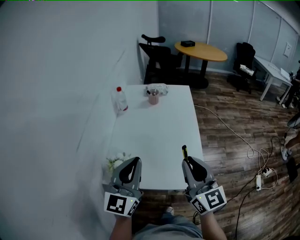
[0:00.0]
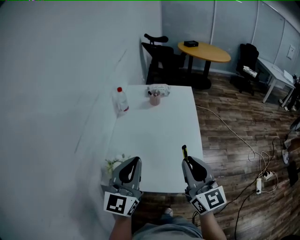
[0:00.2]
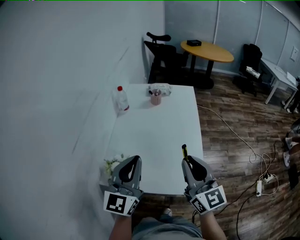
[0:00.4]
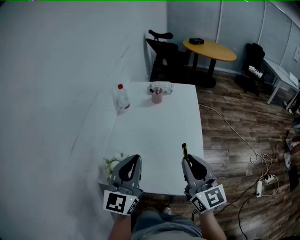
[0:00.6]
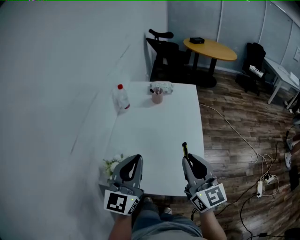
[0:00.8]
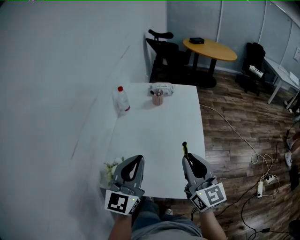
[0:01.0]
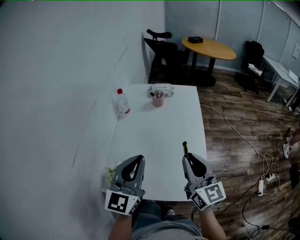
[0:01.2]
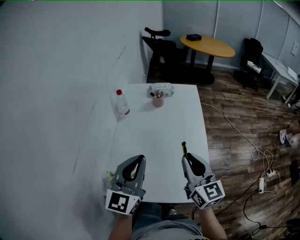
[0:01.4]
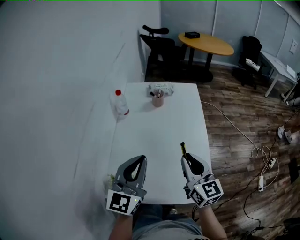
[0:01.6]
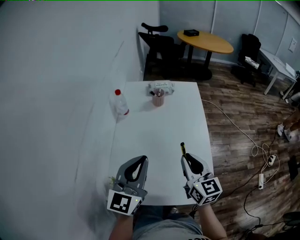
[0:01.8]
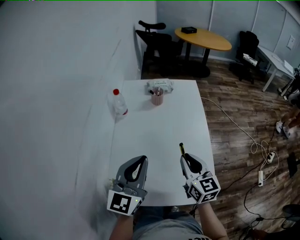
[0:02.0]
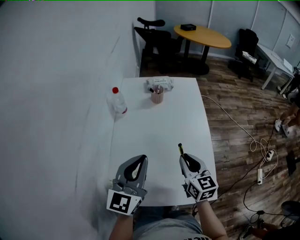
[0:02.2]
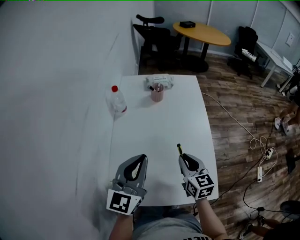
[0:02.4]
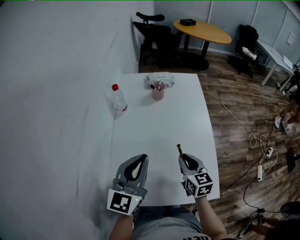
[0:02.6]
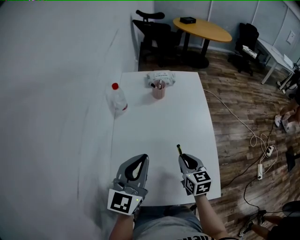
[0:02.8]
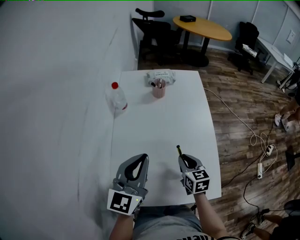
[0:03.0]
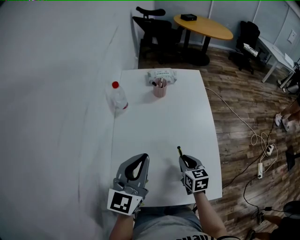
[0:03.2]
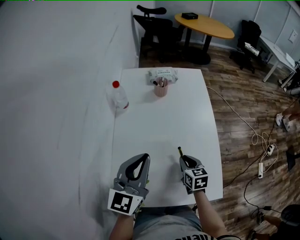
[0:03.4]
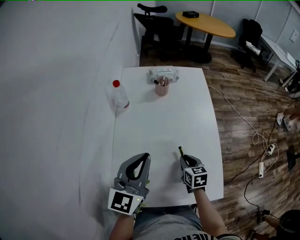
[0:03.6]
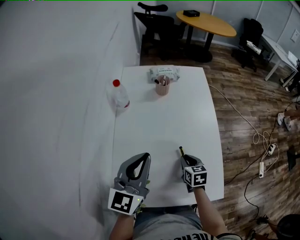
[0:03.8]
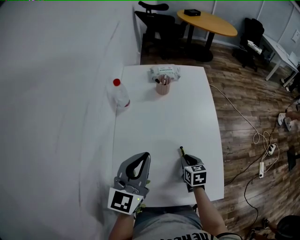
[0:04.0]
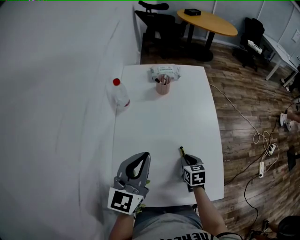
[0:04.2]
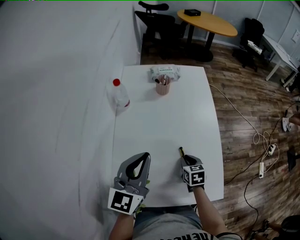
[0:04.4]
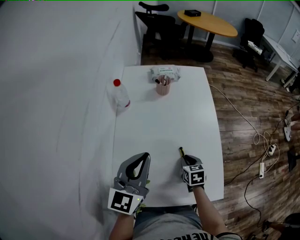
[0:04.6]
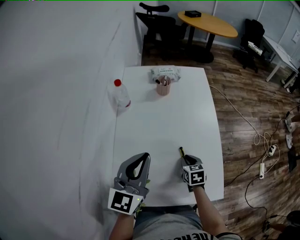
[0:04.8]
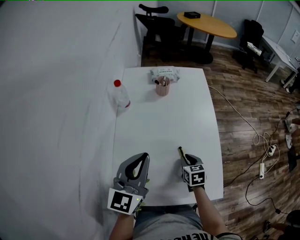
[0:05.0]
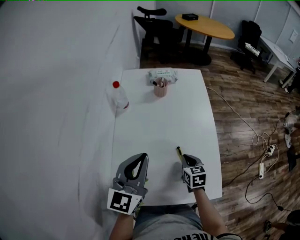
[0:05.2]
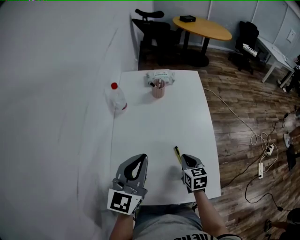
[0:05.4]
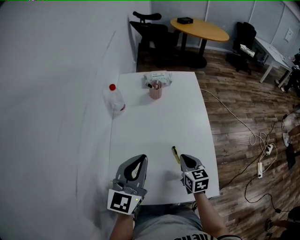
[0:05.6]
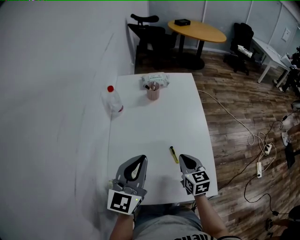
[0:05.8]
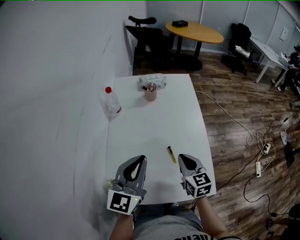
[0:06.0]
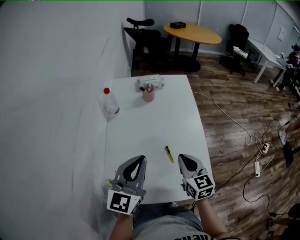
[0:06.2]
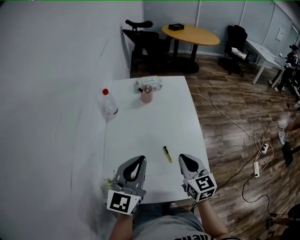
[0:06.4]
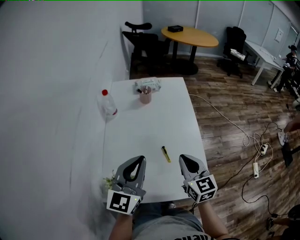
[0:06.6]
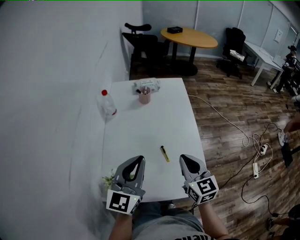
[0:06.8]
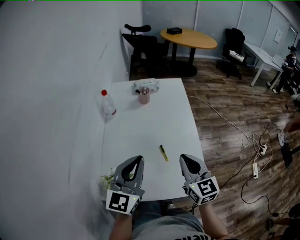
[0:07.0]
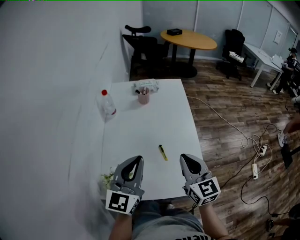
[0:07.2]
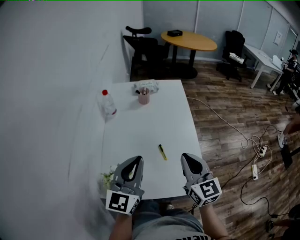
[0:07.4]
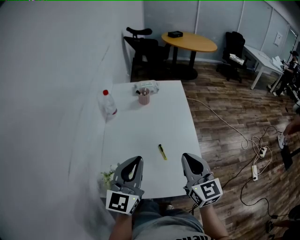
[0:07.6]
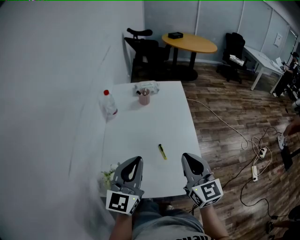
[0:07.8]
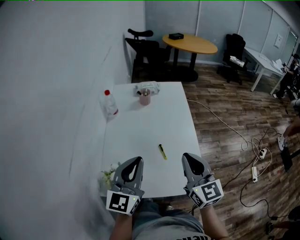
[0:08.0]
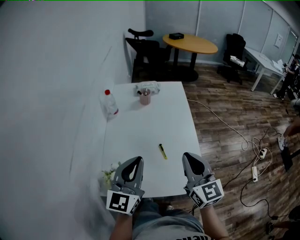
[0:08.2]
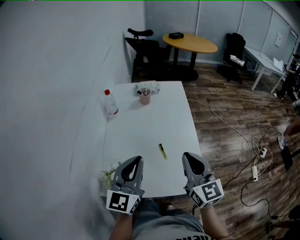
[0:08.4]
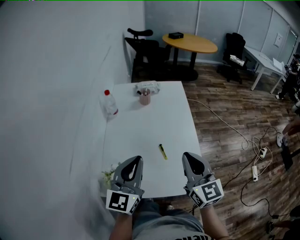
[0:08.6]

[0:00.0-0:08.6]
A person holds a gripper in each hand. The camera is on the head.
0:00.0 to 0:01.4: The two grippers go about 10 cm forward.
0:01.4 to 0:02.8: The left gripper goes roughly 5 cm forward; the right gripper moves downward and forward, approximately 20 cm, and rotates some 30 degrees.
0:02.8 to 0:04.4: The right gripper goes approximately 10 cm downward, and turns by approximately 20 degrees.
0:04.4 to 0:05.8: The right gripper shifts some 10 cm upward, and changes its angle by approximately 20 degrees.
0:05.8 to 0:07.2: The right gripper travels upward and backward by about 15 cm, and turns by about 20 degrees; the left gripper changes place by about 5 cm.
0:07.2 to 0:08.6: The grippers make only small movements.

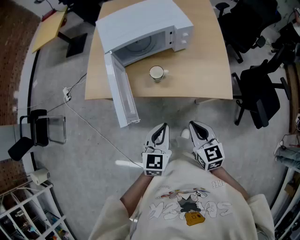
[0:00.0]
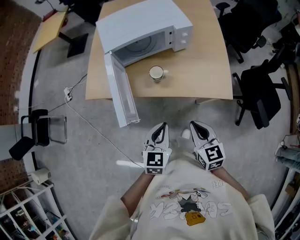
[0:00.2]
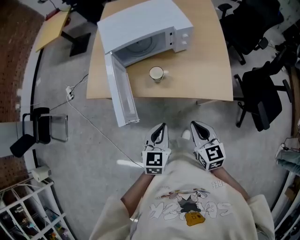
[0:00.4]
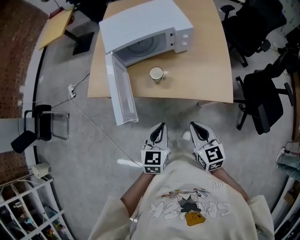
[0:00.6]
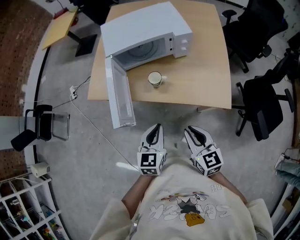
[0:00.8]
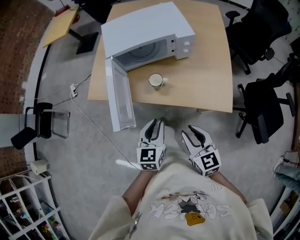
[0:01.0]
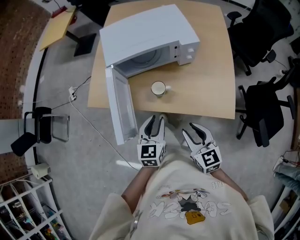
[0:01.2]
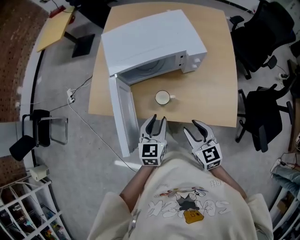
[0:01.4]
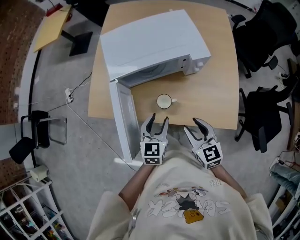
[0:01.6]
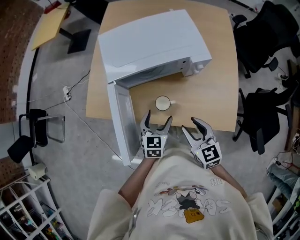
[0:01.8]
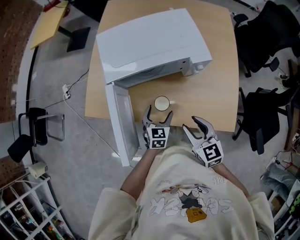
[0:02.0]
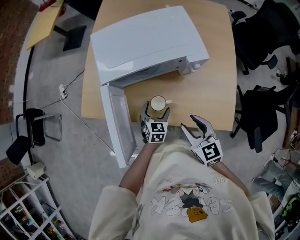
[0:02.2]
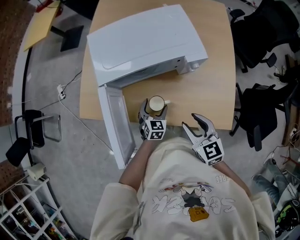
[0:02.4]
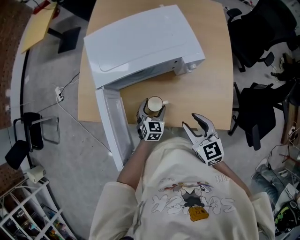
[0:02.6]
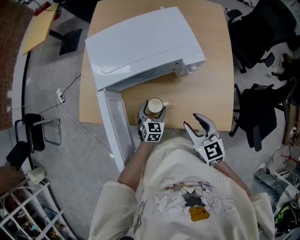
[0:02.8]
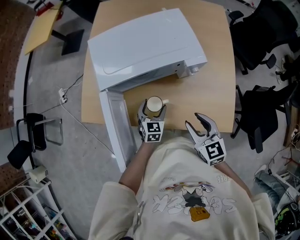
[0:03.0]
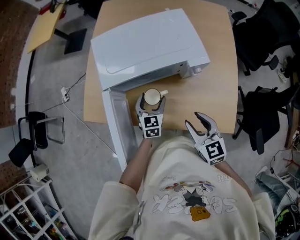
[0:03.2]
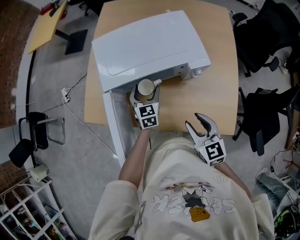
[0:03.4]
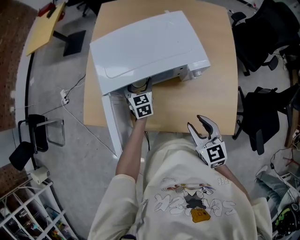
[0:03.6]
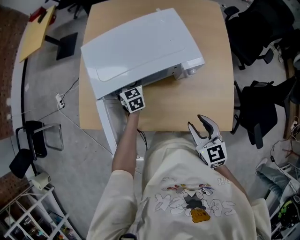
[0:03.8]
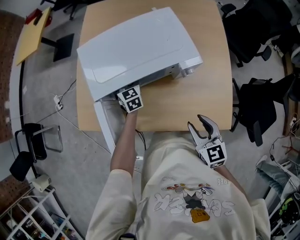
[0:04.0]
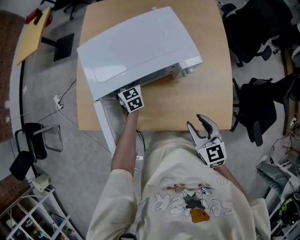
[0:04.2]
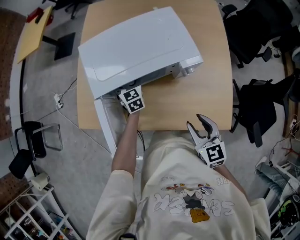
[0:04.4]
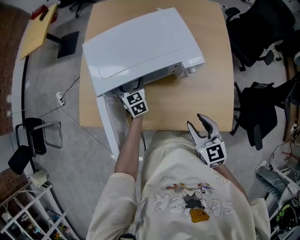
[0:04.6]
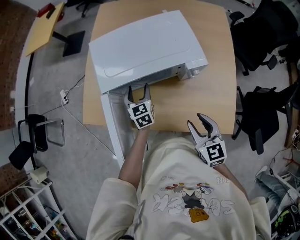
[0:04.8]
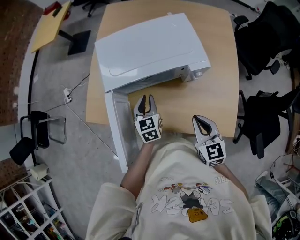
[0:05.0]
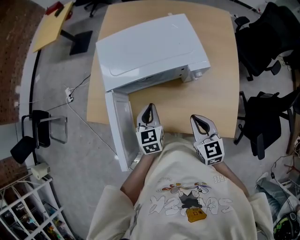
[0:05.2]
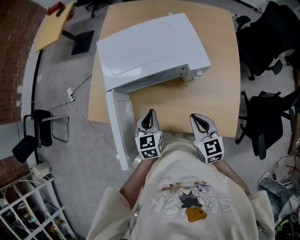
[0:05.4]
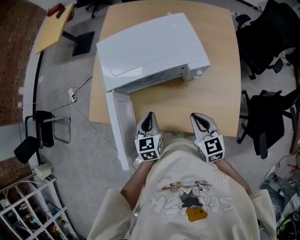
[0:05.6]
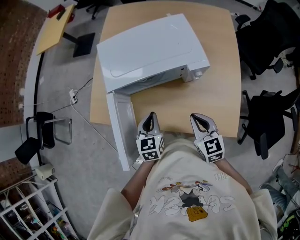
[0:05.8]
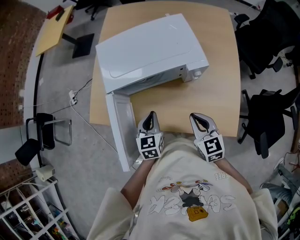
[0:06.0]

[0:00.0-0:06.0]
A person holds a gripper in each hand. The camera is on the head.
0:00.0 to 0:01.6: The two grippers go some 20 cm forward. The left gripper opens up. The right gripper opens up.
0:01.6 to 0:03.0: The left gripper moves downward and forward, about 15 cm, and opens its fingers. The right gripper heads forward, covering approximately 5 cm.
0:03.0 to 0:04.4: The left gripper shifts about 20 cm forward, and rotates about 20 degrees.
0:04.4 to 0:06.0: The right gripper closes its fingers, while the left gripper shifts approximately 20 cm backward, and closes.

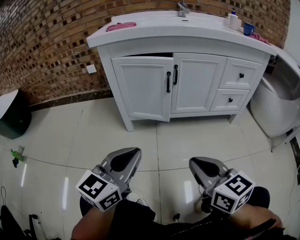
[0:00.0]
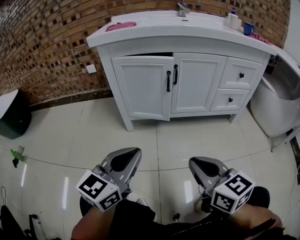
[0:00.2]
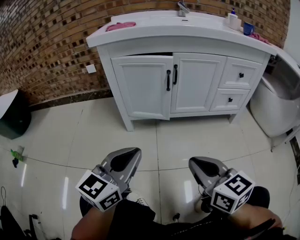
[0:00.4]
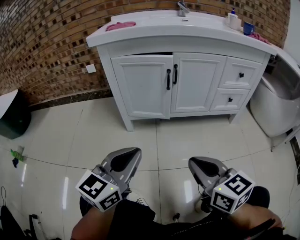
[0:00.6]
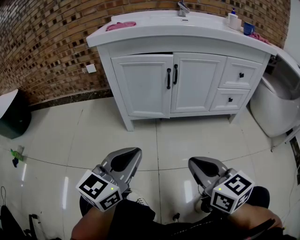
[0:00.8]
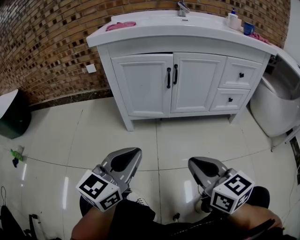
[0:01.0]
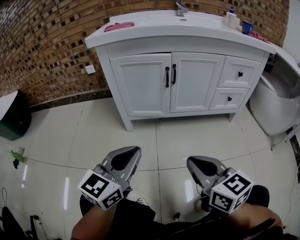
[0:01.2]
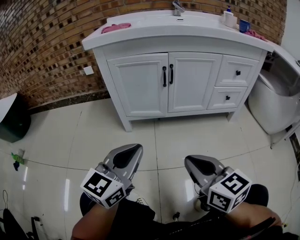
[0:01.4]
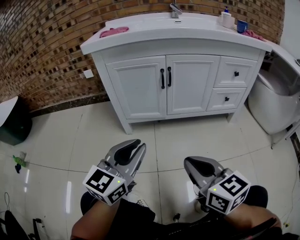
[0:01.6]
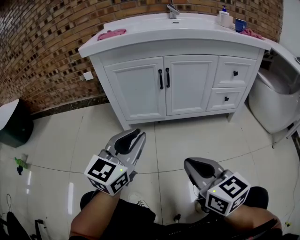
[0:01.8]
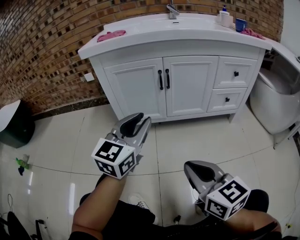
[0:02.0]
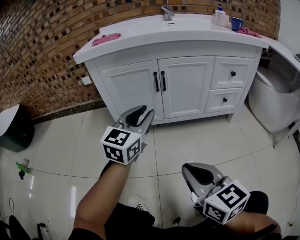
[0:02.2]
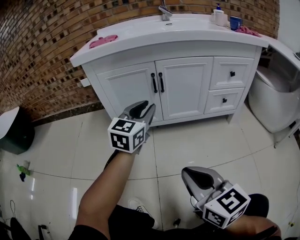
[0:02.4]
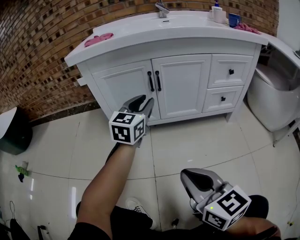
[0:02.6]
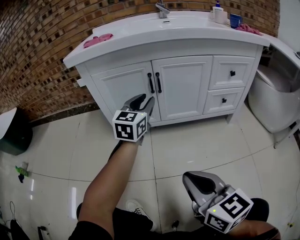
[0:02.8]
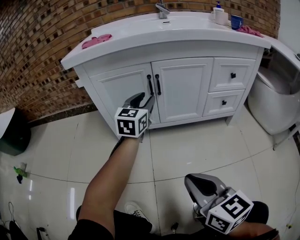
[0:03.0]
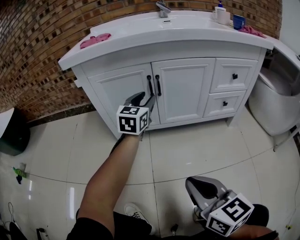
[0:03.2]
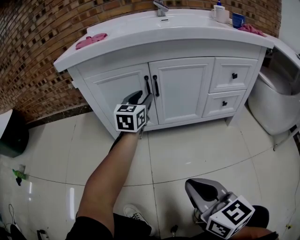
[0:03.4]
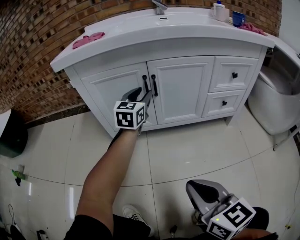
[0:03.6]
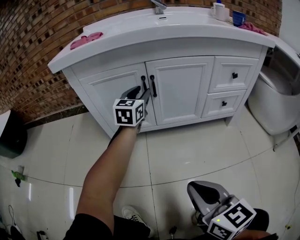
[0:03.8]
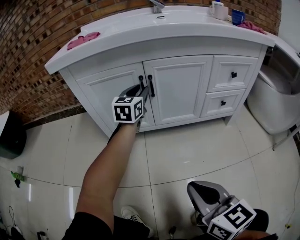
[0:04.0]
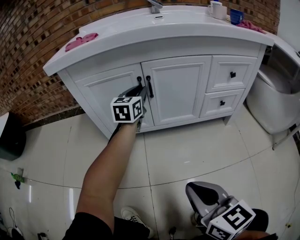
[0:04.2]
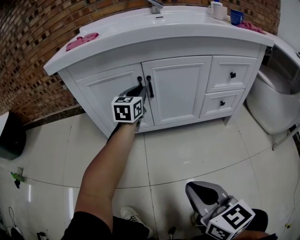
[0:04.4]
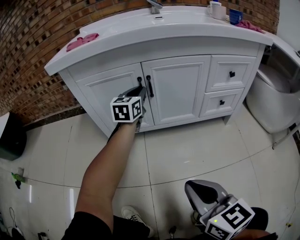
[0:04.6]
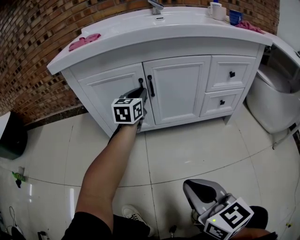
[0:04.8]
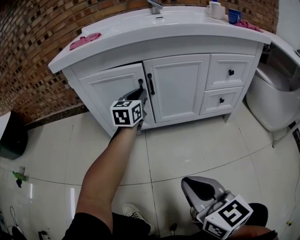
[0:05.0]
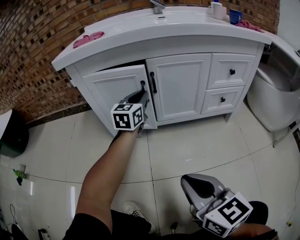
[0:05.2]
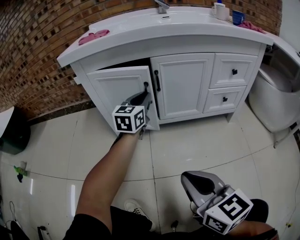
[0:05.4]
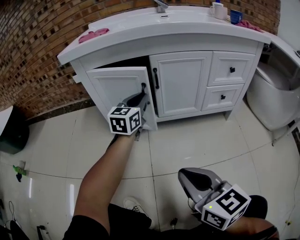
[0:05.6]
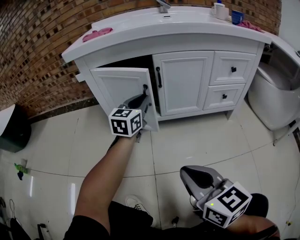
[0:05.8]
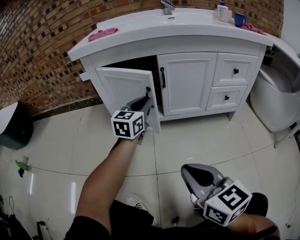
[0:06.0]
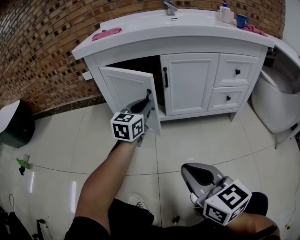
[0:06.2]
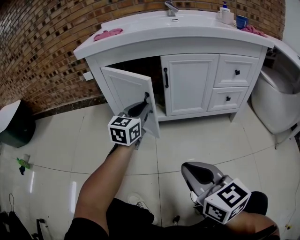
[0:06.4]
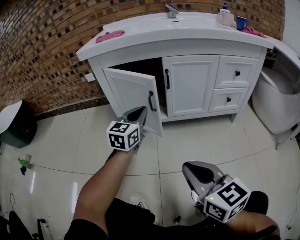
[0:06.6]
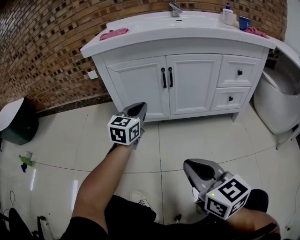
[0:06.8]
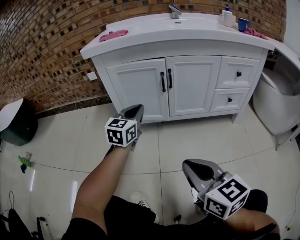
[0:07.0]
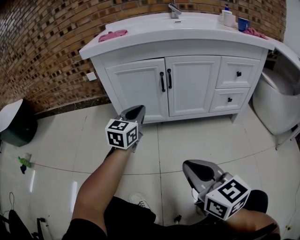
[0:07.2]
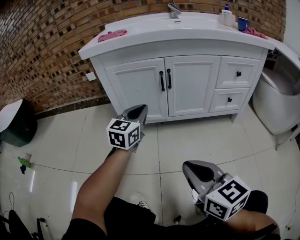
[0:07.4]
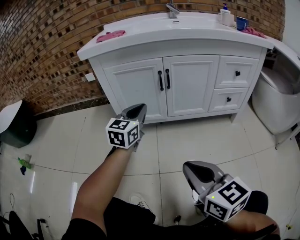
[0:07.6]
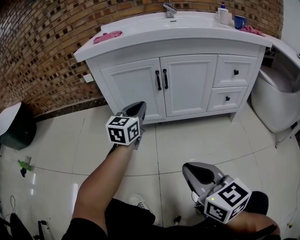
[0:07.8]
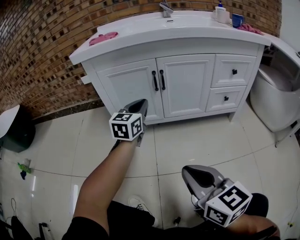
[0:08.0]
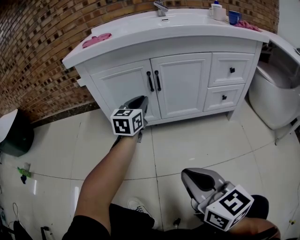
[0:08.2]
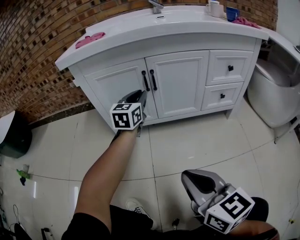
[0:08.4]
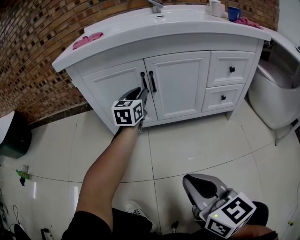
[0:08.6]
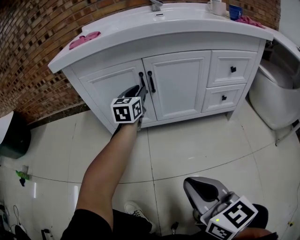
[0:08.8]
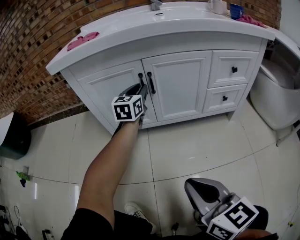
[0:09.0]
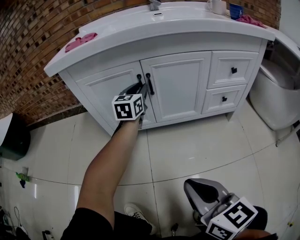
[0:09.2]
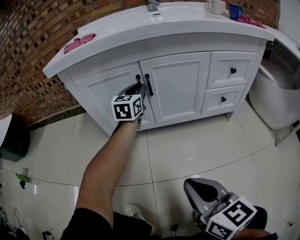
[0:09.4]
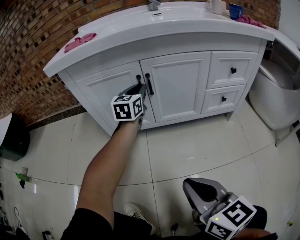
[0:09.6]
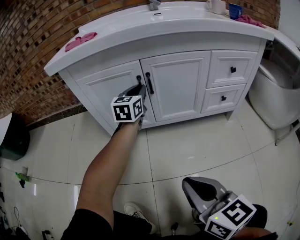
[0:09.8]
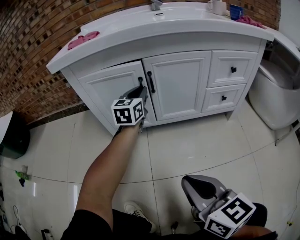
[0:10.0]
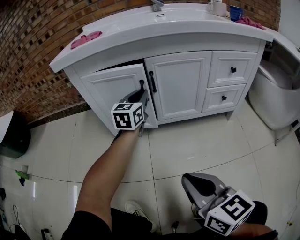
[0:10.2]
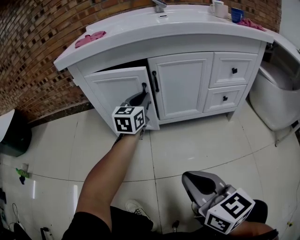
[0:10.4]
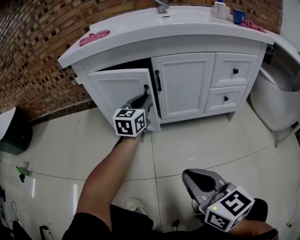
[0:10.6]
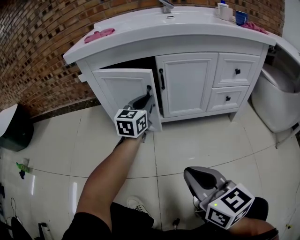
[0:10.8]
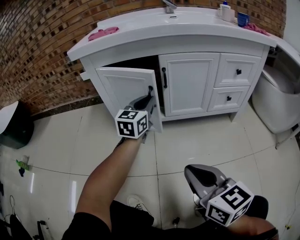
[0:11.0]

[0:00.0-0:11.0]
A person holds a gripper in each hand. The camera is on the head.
0:00.0 to 0:01.6: The grippers stay close to where they were, moving slightly.
0:01.6 to 0:03.2: The left gripper moves forward, some 30 cm, and opens up.
0:03.2 to 0:04.8: The left gripper shifts about 5 cm forward, and closes up.
0:04.8 to 0:06.2: The right gripper ends up approximately 5 cm from where it was, while the left gripper is displaced backward and to the left by some 15 cm.
0:06.2 to 0:07.8: The grippers move only a little.
0:07.8 to 0:09.4: The left gripper shifts some 20 cm forward and to the right. The right gripper moves to the right, roughly 5 cm.
0:09.4 to 0:11.0: The left gripper heads backward, covering about 15 cm.
